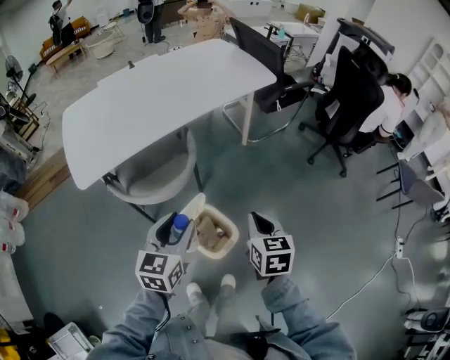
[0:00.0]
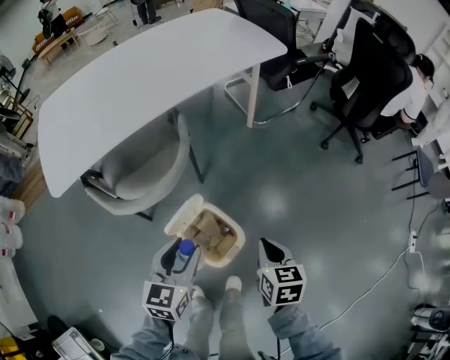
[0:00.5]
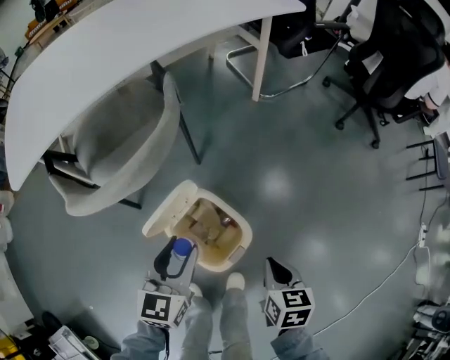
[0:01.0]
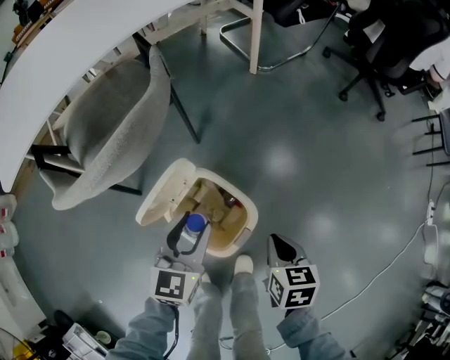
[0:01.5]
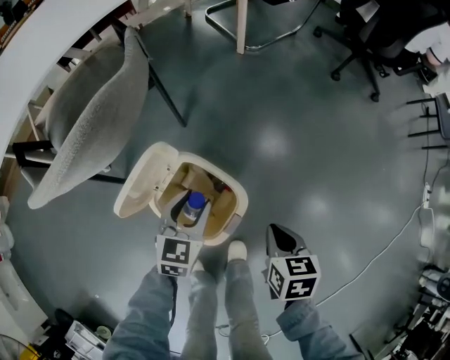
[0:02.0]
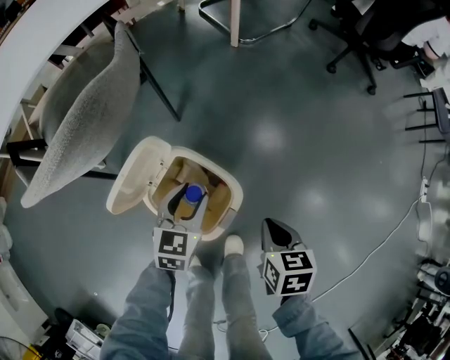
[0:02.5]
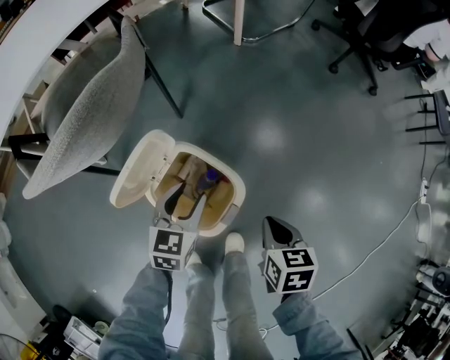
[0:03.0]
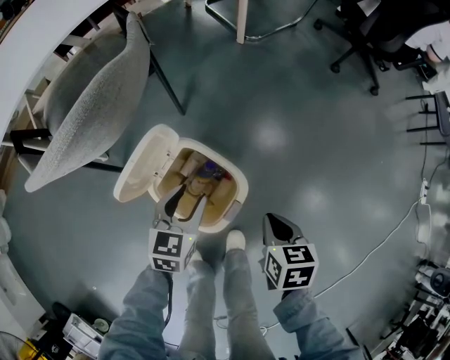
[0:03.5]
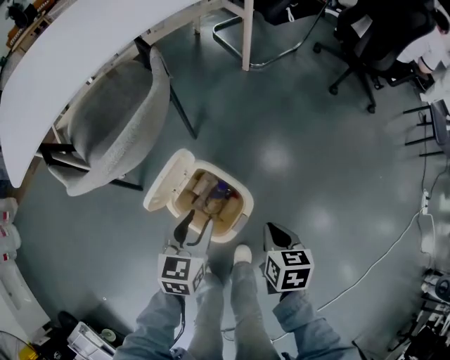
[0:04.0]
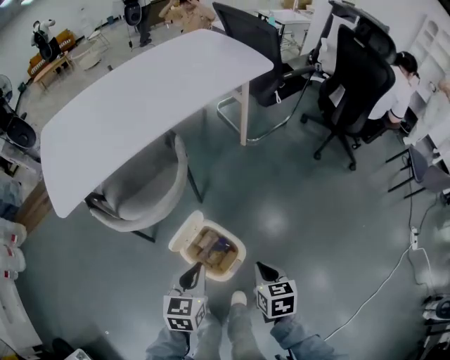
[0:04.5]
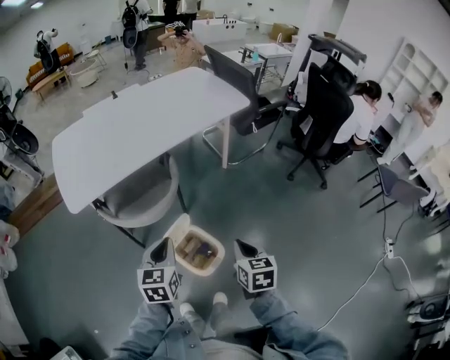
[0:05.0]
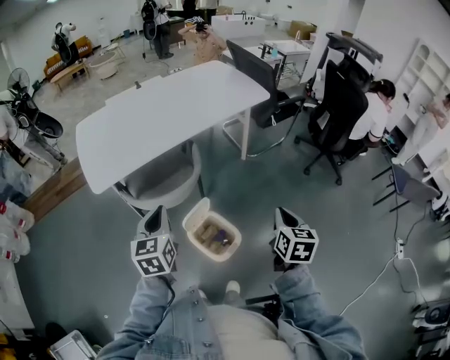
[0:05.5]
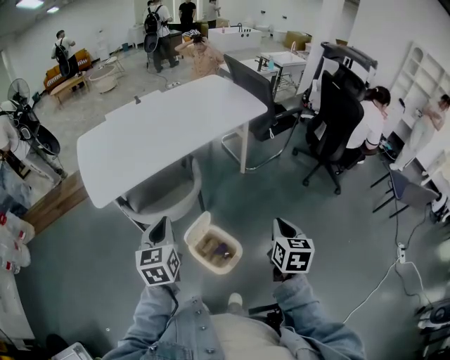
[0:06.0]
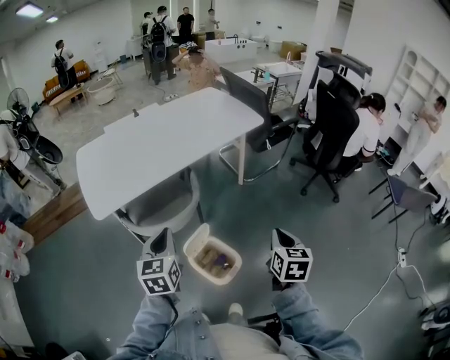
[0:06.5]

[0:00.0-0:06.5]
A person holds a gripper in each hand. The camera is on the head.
0:00.0 to 0:02.0: Both grippers travel together downward, approximately 40 cm. The left gripper rotates some 20 degrees; the right gripper rotates approximately 20 degrees.
0:02.0 to 0:04.5: Both grippers travel together upward, about 20 cm. The left gripper closes.
0:04.5 to 0:06.5: The right gripper heads upward, covering about 25 cm, and swivels approximately 20 degrees. Meanwhile the left gripper goes about 30 cm upward and to the left, and rotates approximately 20 degrees.

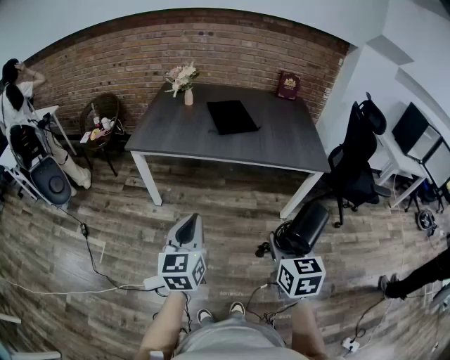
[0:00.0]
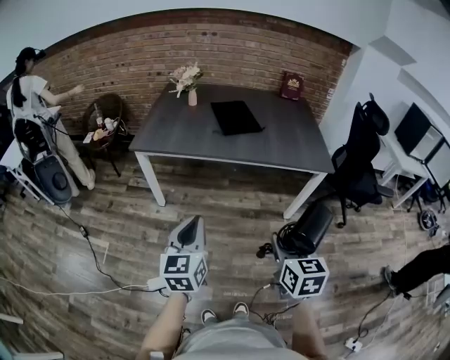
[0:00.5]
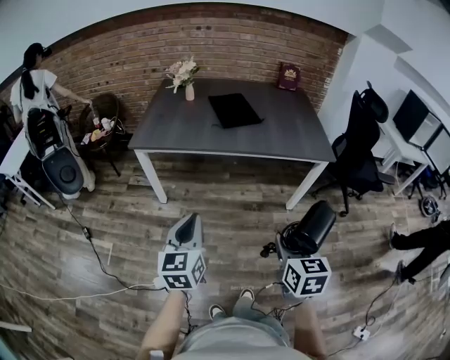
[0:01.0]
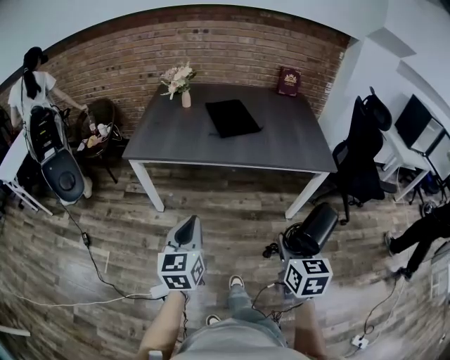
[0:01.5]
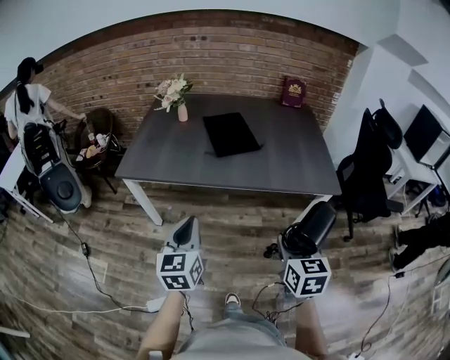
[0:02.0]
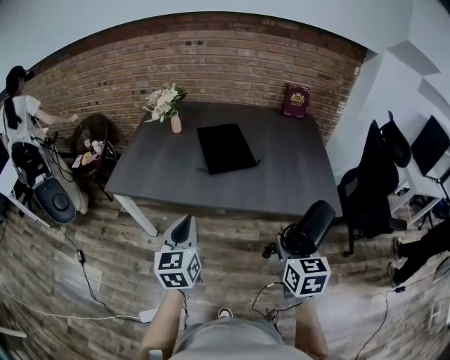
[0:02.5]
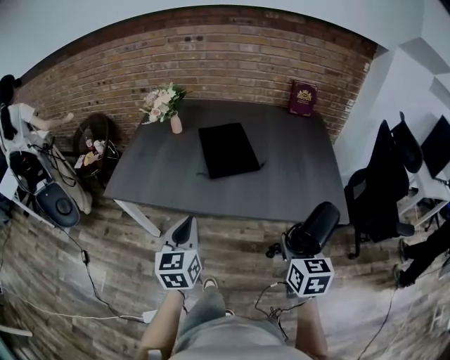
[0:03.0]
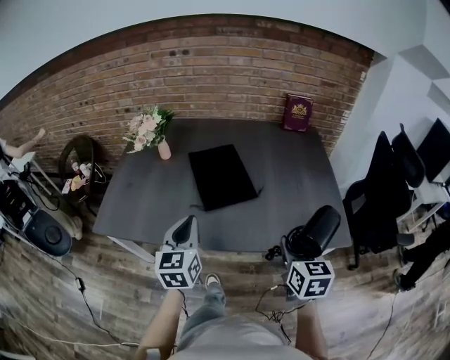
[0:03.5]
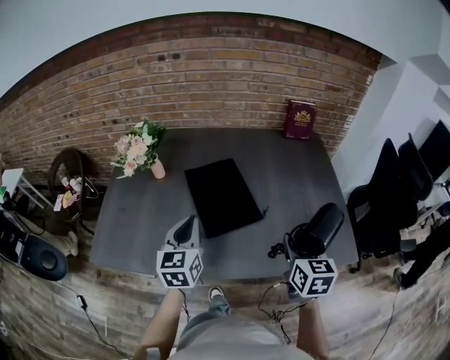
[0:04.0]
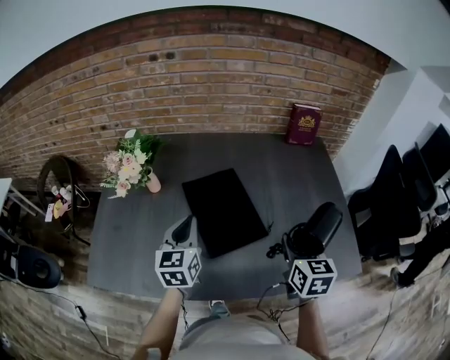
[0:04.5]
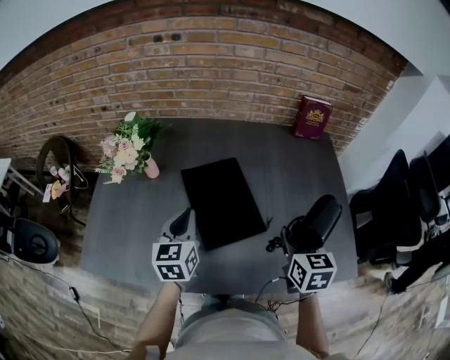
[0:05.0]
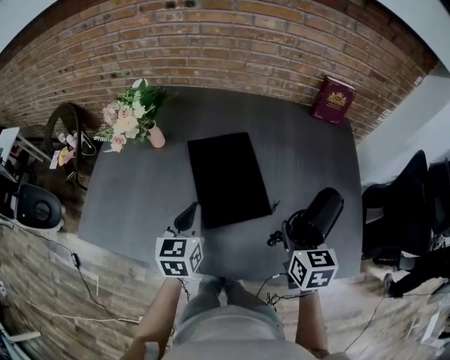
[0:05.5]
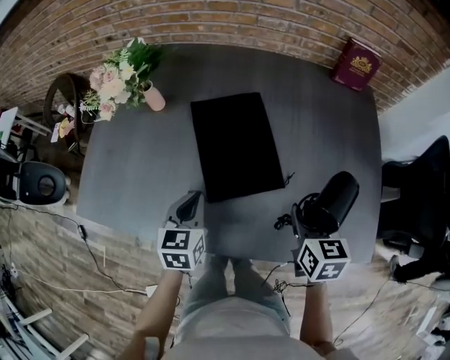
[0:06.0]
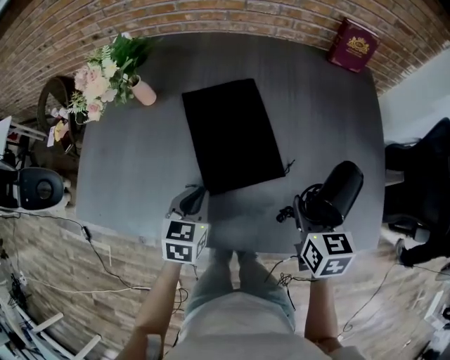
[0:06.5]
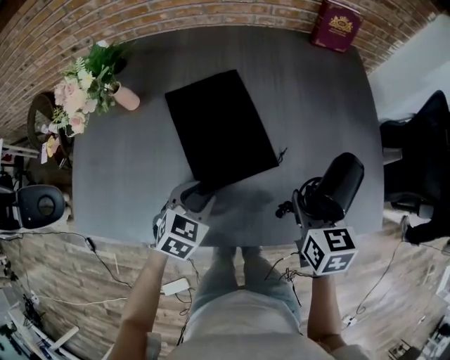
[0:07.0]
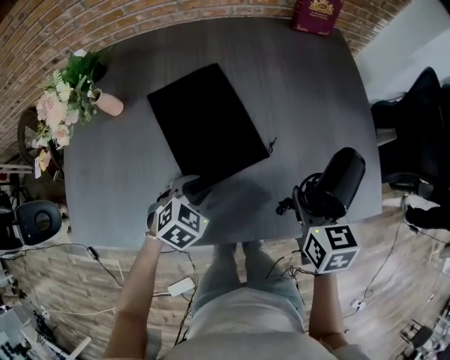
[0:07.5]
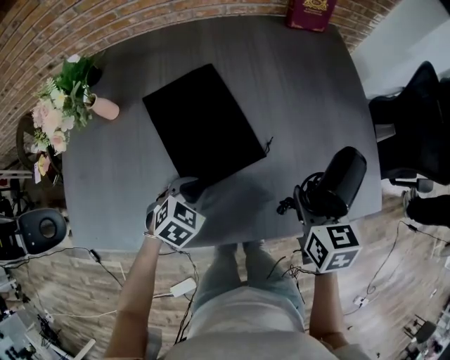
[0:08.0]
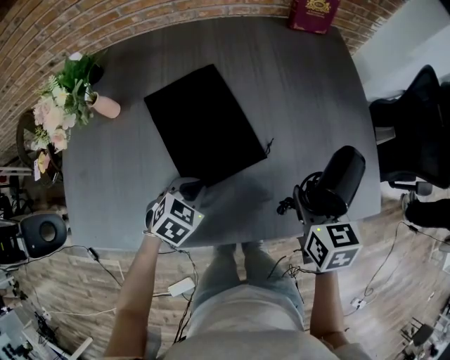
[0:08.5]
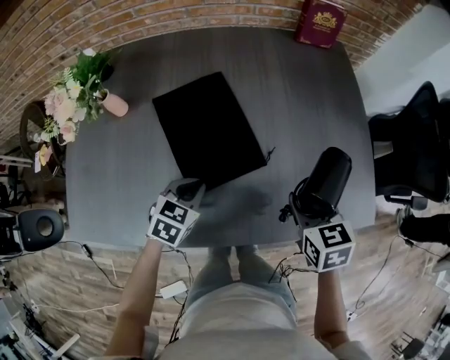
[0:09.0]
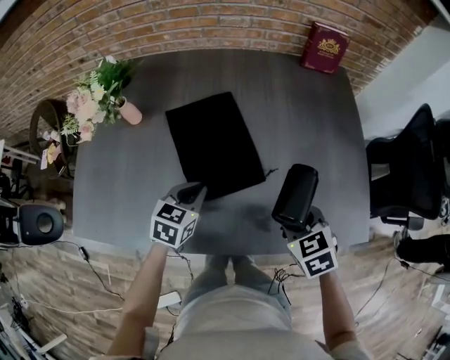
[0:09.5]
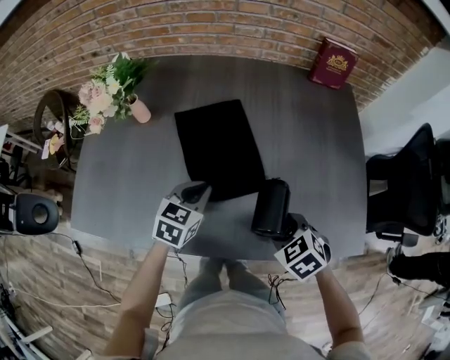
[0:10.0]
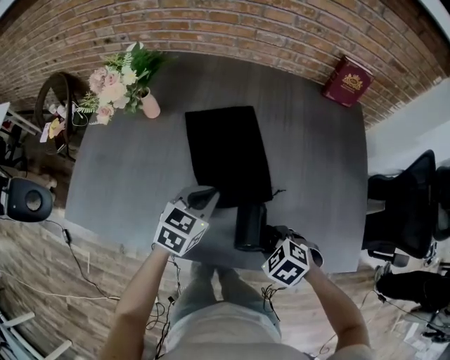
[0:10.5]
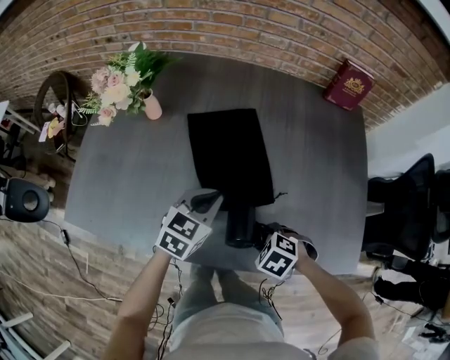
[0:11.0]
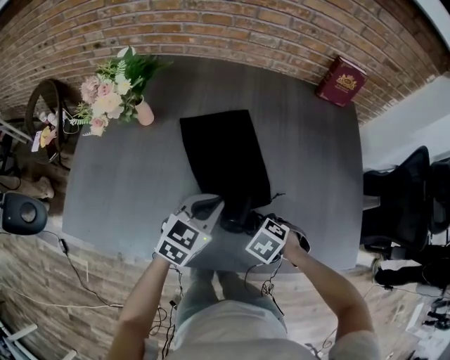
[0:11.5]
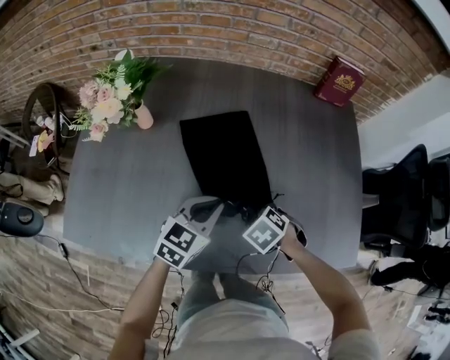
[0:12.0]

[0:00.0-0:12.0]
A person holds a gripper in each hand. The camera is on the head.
0:00.0 to 0:02.0: The two grippers go approximately 20 cm forward.
0:02.0 to 0:04.0: Both grippers are carried forward, some 40 cm.
0:04.0 to 0:06.0: The left gripper heads downward, covering roughly 15 cm, and turns by about 20 degrees, while the right gripper is displaced forward and downward by approximately 15 cm.
0:06.0 to 0:08.0: The left gripper moves downward, approximately 10 cm, and changes its angle by about 60 degrees, while the right gripper ends up roughly 5 cm from where it was.
0:08.0 to 0:10.0: The right gripper is displaced to the left by roughly 5 cm, and rolls counterclockwise, seen from behind, by about 40 degrees; the left gripper travels upward by about 10 cm, and turns by some 30 degrees.
0:10.0 to 0:12.0: The right gripper shifts by roughly 10 cm, and swivels approximately 20 degrees.

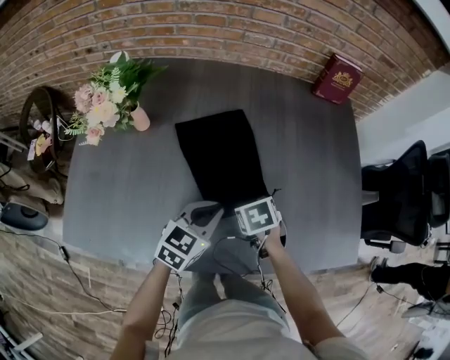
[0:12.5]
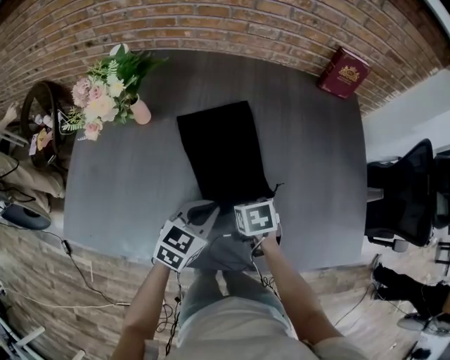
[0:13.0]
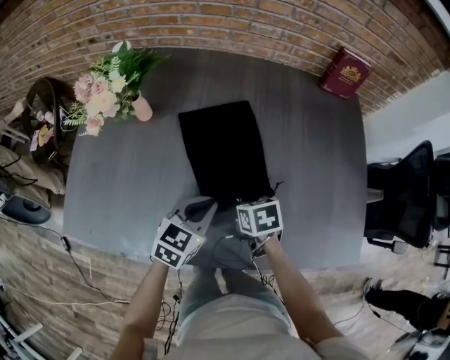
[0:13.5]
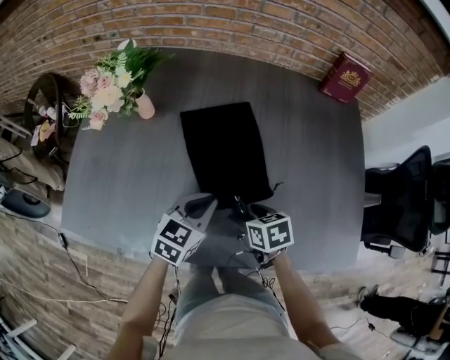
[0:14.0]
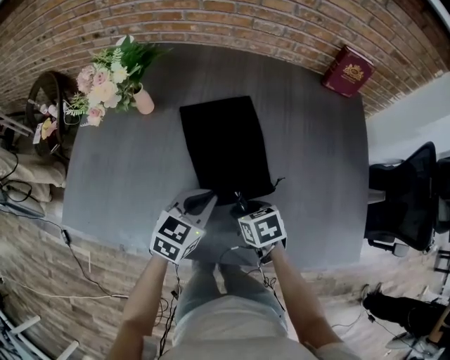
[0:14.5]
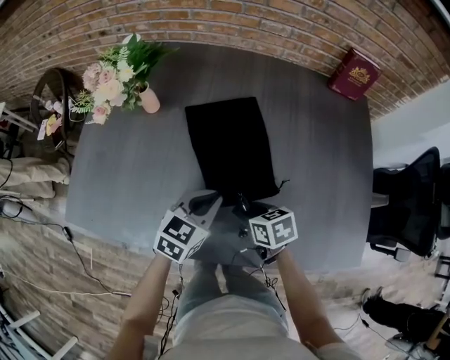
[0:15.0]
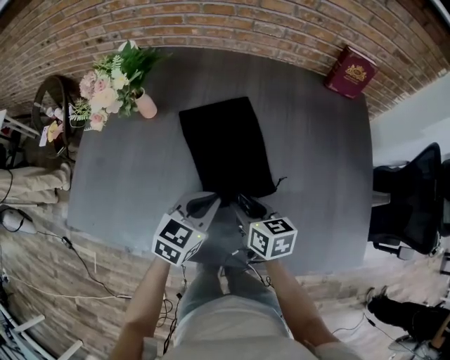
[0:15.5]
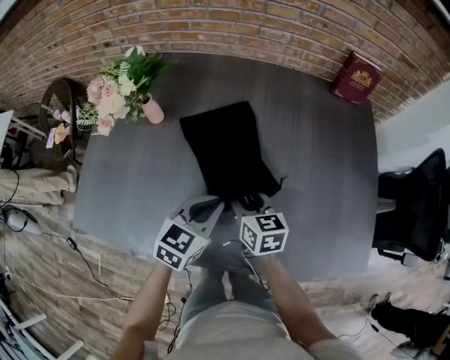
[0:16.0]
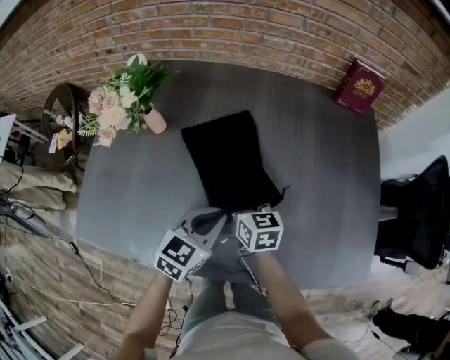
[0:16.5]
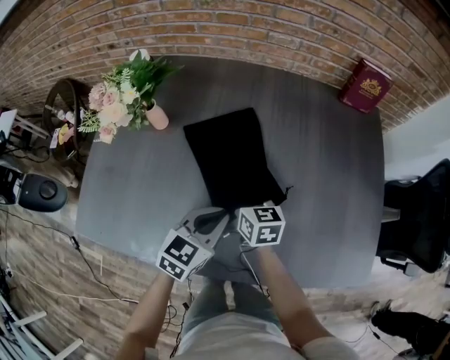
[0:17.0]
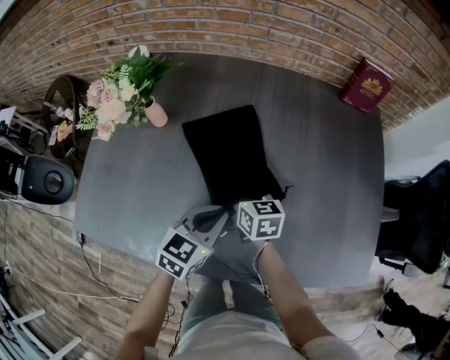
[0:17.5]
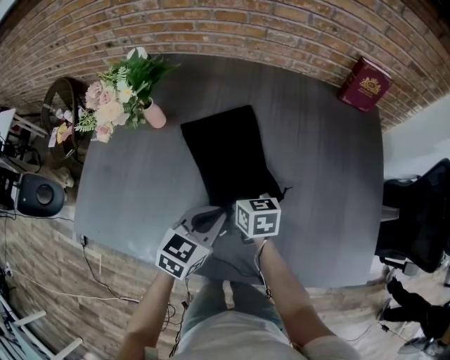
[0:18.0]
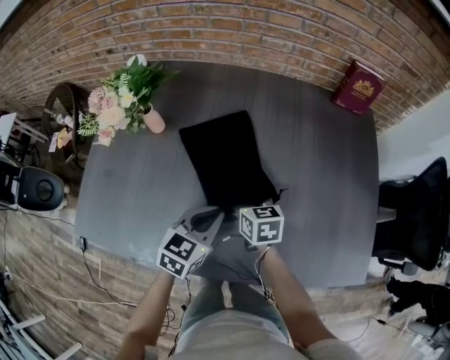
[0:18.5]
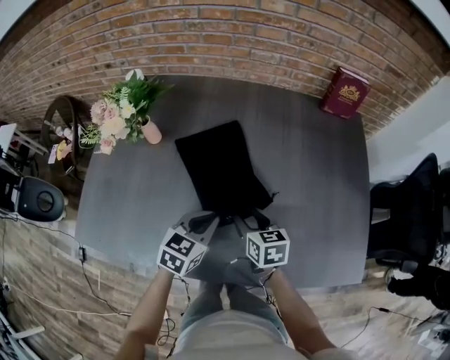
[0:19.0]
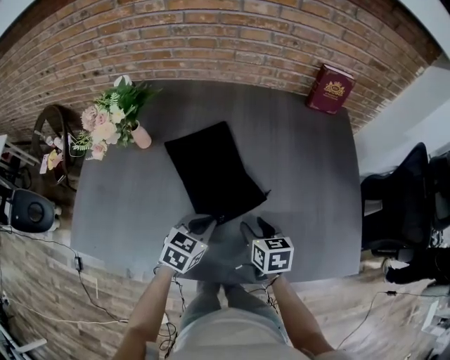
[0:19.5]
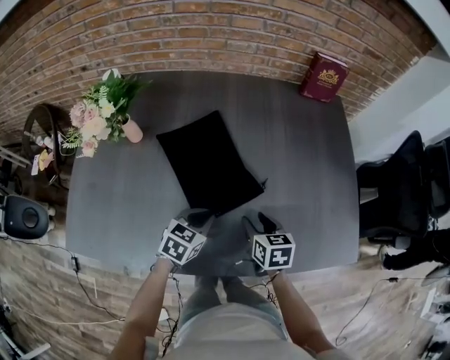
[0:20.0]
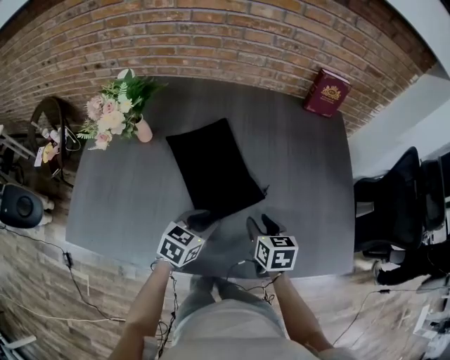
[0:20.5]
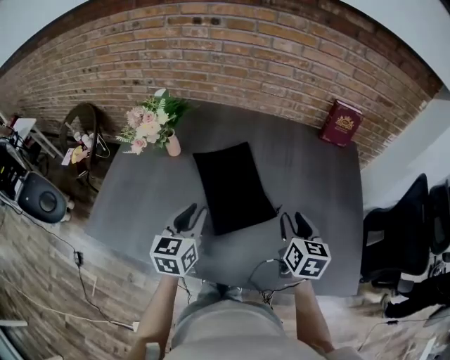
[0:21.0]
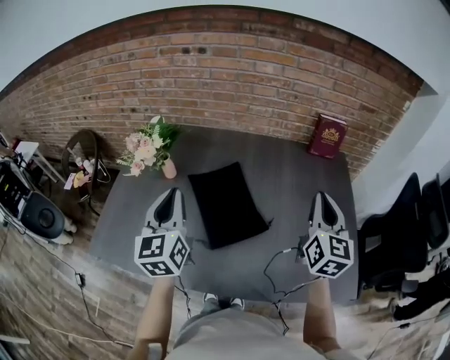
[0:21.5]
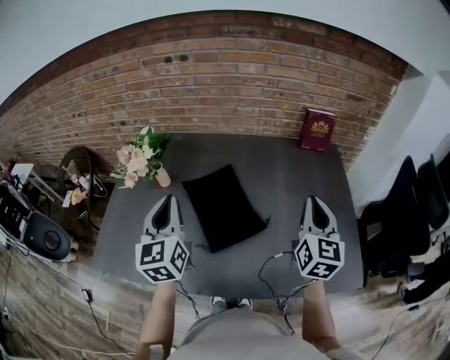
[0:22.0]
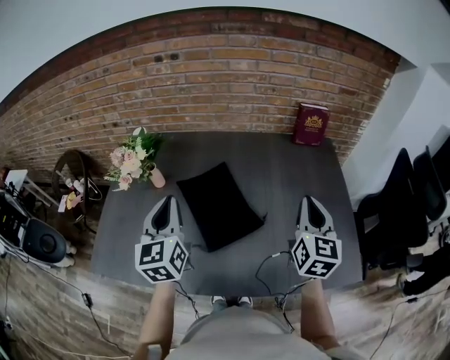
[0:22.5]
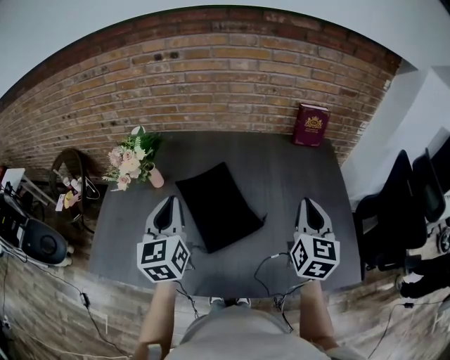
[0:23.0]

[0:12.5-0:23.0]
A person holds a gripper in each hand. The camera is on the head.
0:12.5 to 0:14.5: The right gripper goes roughly 5 cm backward.
0:14.5 to 0:16.5: The right gripper moves forward and upward, roughly 15 cm, and points its fingers some 30 degrees further upward.
0:16.5 to 0:19.0: The right gripper shifts some 10 cm to the right and backward.
0:19.0 to 0:21.0: The right gripper moves upward and to the right, roughly 15 cm, and changes its angle by about 20 degrees; the left gripper travels upward and to the left by approximately 15 cm, turns by about 30 degrees, and opens its fingers.
0:21.0 to 0:23.0: The left gripper heads upward, covering roughly 15 cm, and closes. The right gripper travels upward and to the right by approximately 15 cm, swivels about 20 degrees, and closes up.
